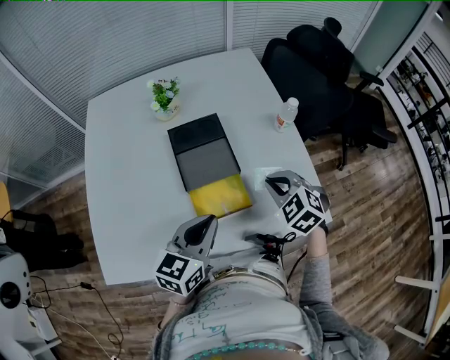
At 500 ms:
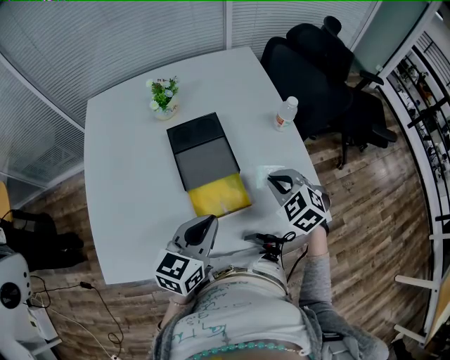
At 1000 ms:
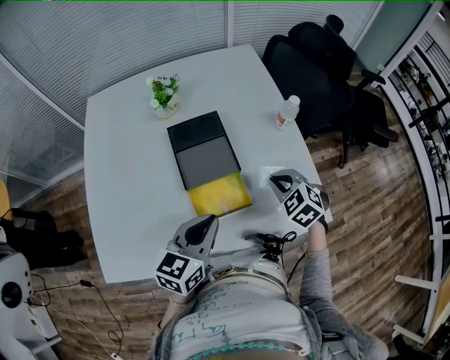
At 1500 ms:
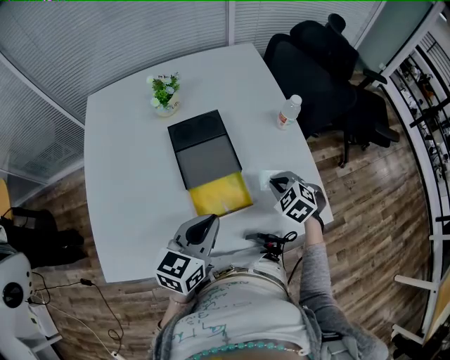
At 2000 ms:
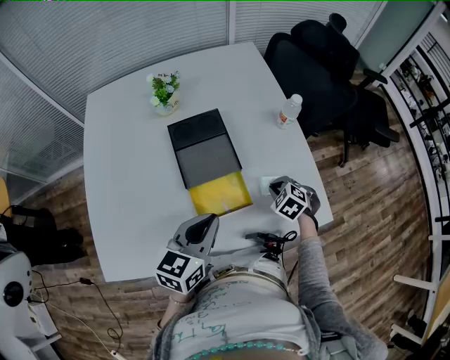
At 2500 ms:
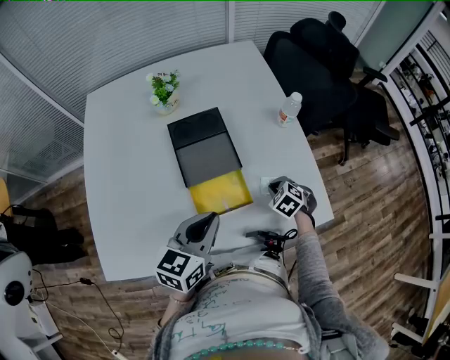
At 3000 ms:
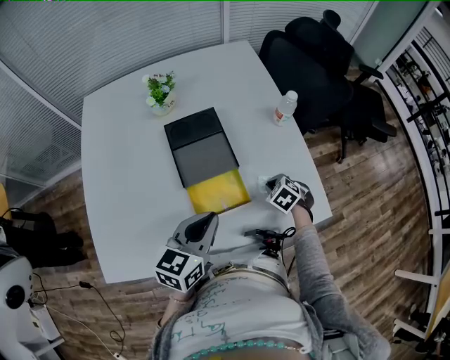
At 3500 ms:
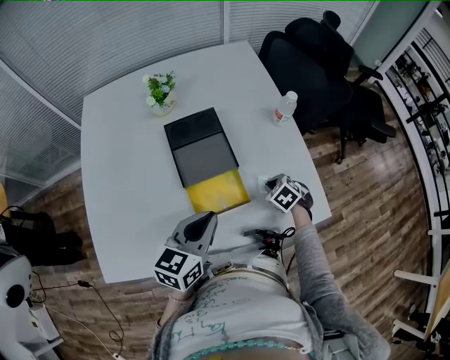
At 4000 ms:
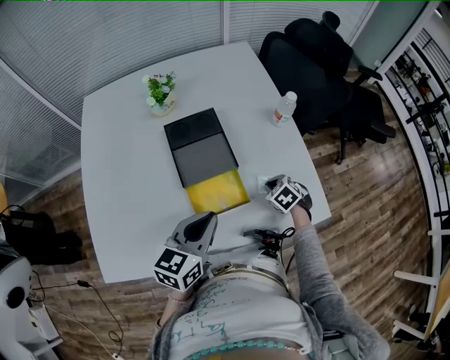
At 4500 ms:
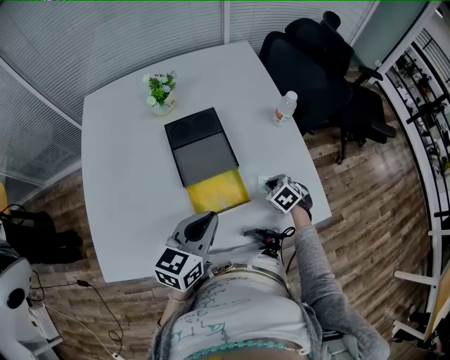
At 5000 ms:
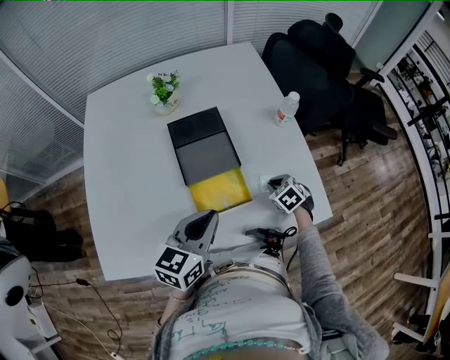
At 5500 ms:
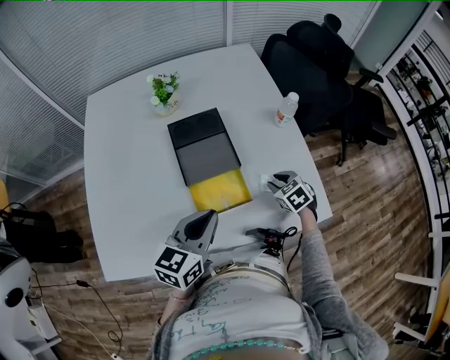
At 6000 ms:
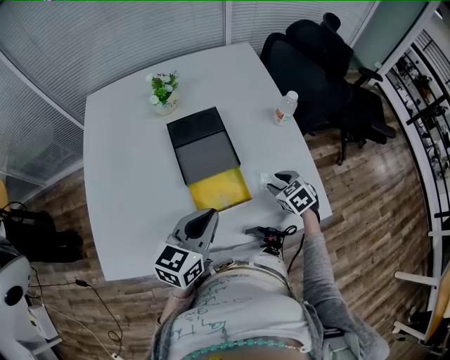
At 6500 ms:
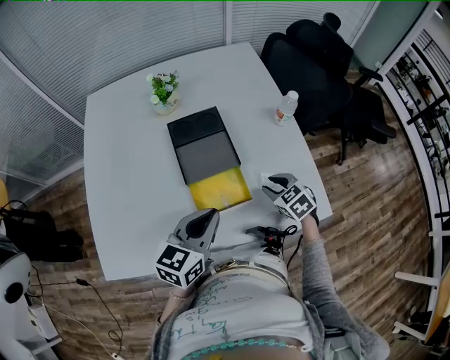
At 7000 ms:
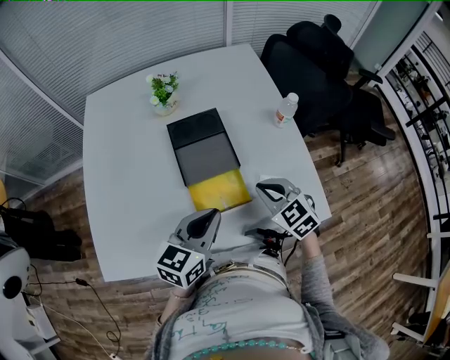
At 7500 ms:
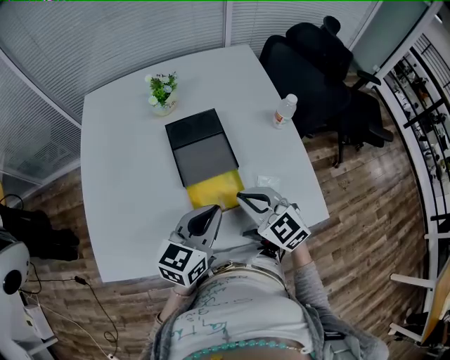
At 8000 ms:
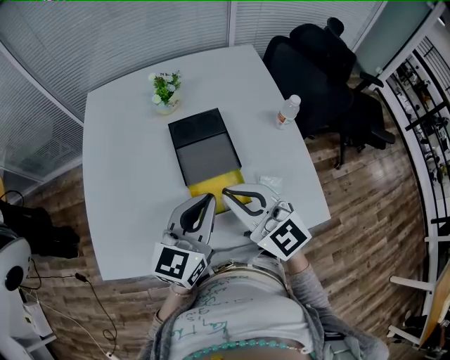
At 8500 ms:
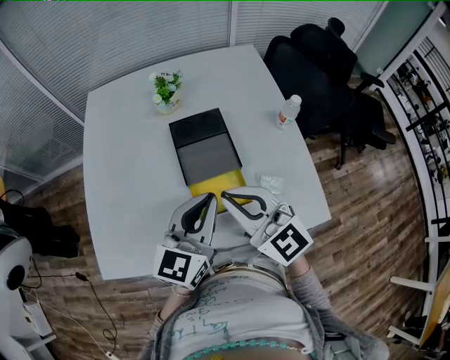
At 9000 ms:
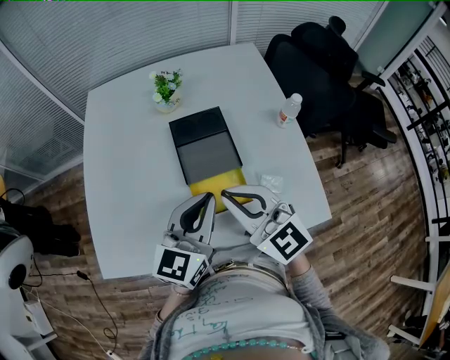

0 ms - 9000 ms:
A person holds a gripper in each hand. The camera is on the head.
0 ms - 2000 ms: The right gripper heads downward, covering roughly 15 cm.
2000 ms - 4500 ms: The grippers stay close to where they were, moving slightly.
4500 ms - 7000 ms: The right gripper travels upward and to the left by some 20 cm, swivels some 30 degrees, and opens, then closes once more.
7000 ms - 9000 ms: The left gripper shifts roughly 5 cm upward, while the right gripper goes some 20 cm upward and to the left, and turns by roughly 30 degrees.

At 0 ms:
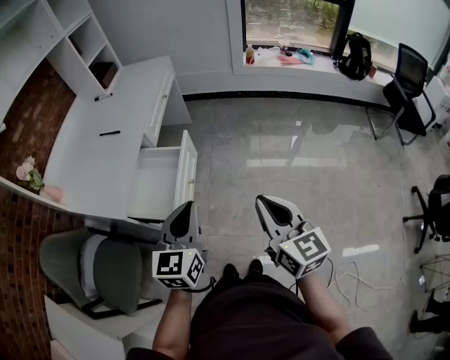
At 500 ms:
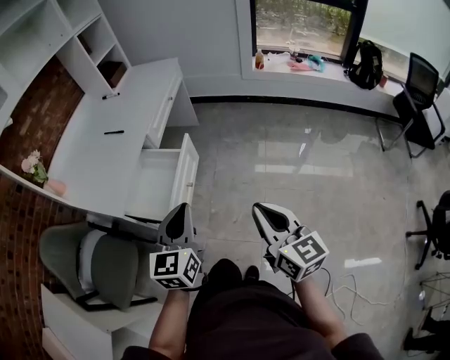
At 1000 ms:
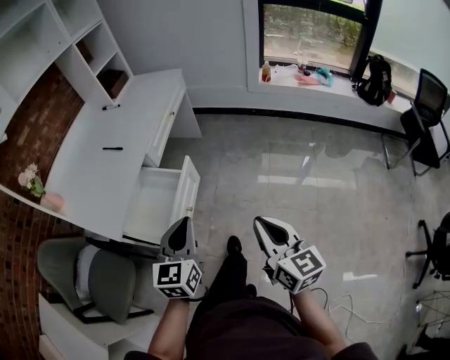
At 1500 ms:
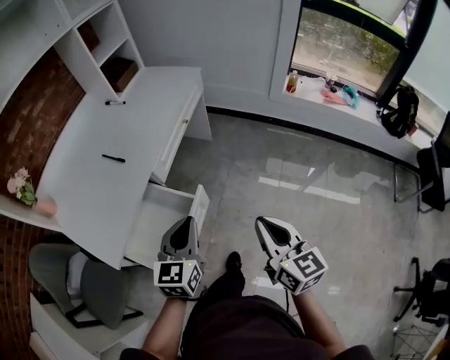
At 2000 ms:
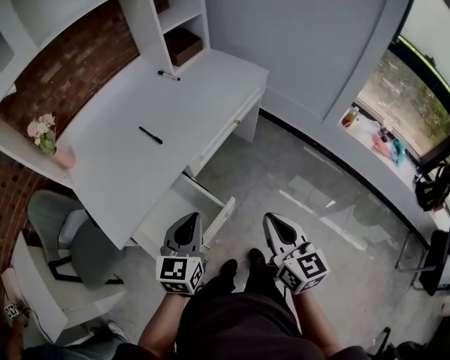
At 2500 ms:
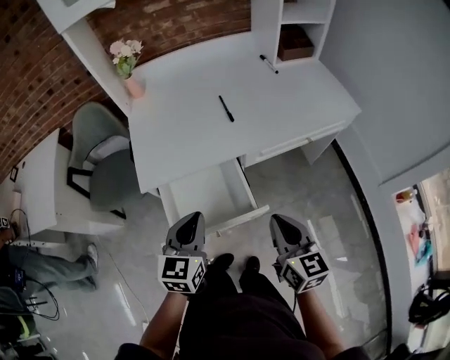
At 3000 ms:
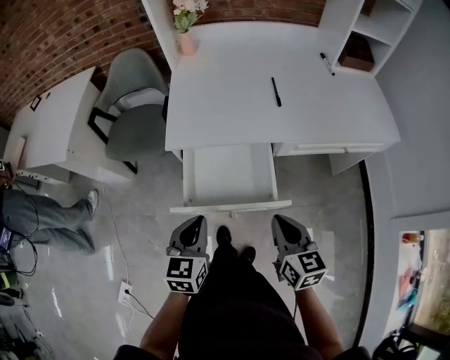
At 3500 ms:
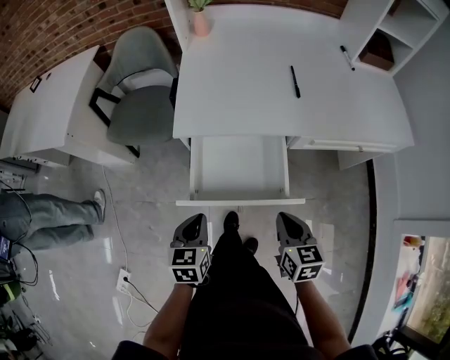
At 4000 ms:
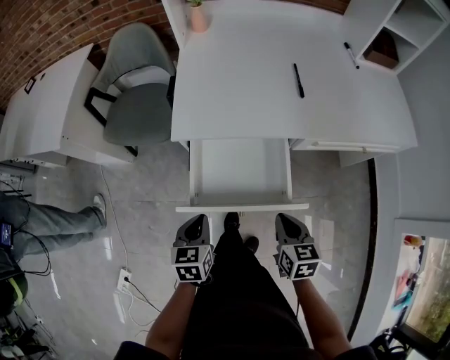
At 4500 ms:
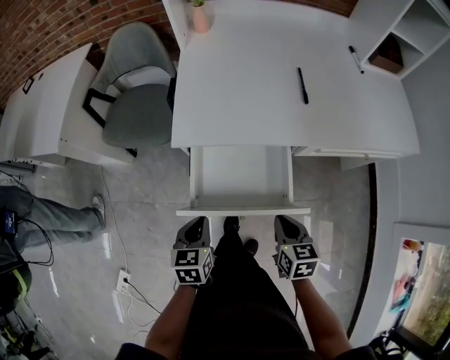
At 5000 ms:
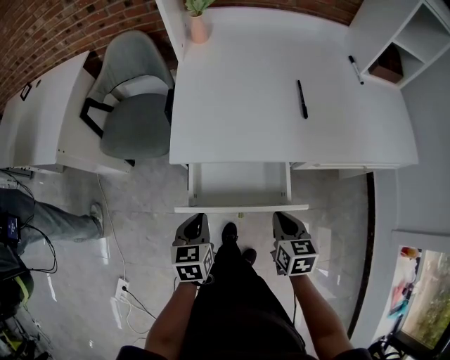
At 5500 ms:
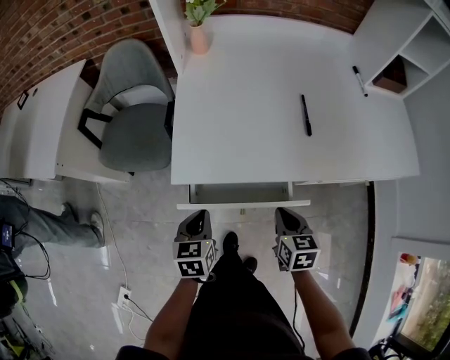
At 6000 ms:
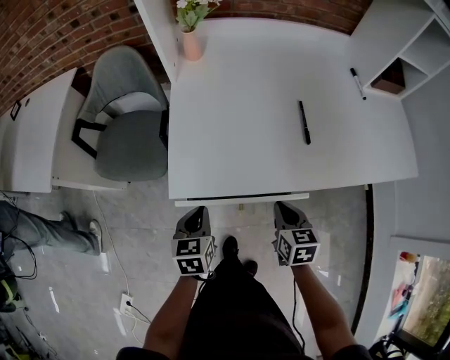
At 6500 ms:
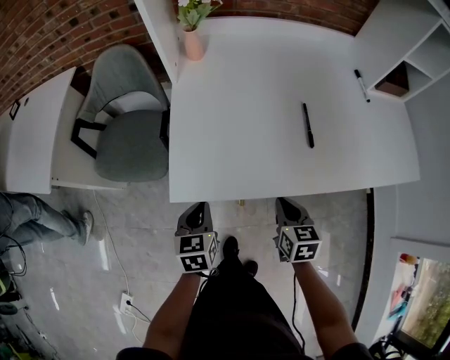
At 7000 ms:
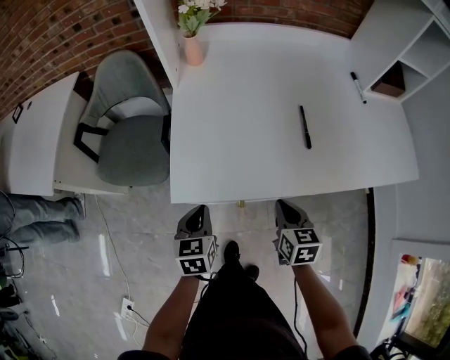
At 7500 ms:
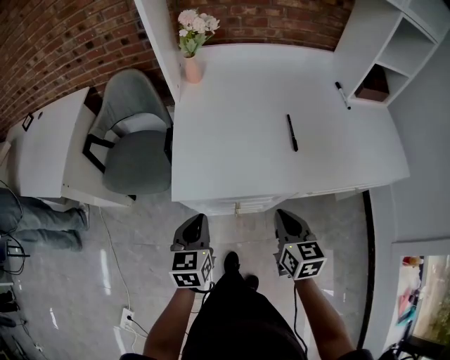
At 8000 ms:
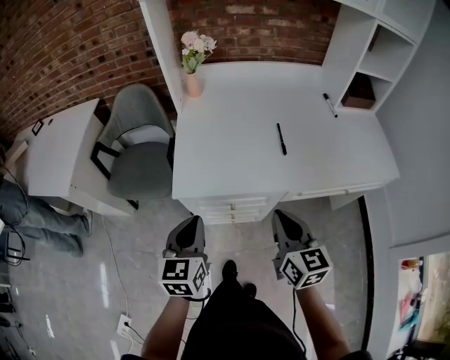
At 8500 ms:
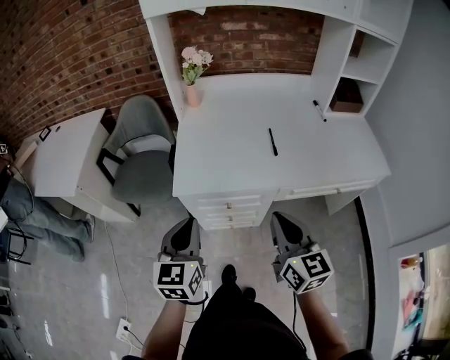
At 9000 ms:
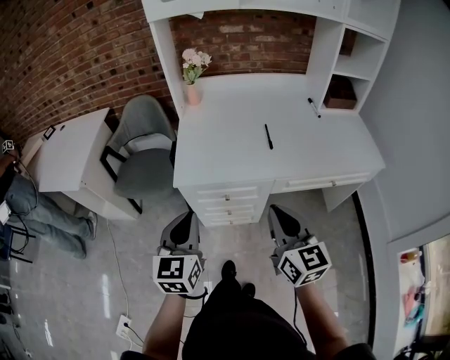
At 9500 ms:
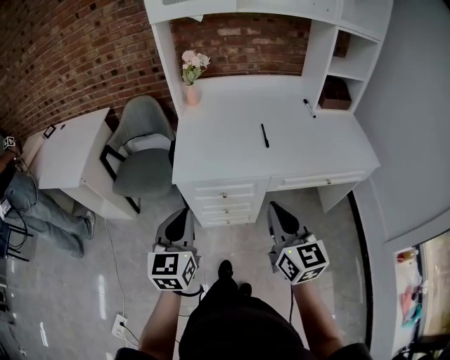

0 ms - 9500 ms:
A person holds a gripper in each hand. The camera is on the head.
0 ms - 2000 ms: The right gripper shifts by approximately 35 cm, and turns by some 30 degrees. Meanwhile the left gripper shifts by some 30 cm, and changes its angle by about 30 degrees.
2000 ms - 4000 ms: The right gripper is displaced downward by roughly 20 cm, and changes its angle by some 50 degrees. Meanwhile the left gripper changes place by about 25 cm, and swivels roughly 60 degrees.
4000 ms - 5500 ms: Both grippers move forward, about 15 cm.
5500 ms - 7500 ms: The grippers both shift upward by some 10 cm.
7500 ms - 9500 ms: The two grippers go some 25 cm upward and backward. The right gripper changes its angle by some 30 degrees; the left gripper swivels approximately 20 degrees.

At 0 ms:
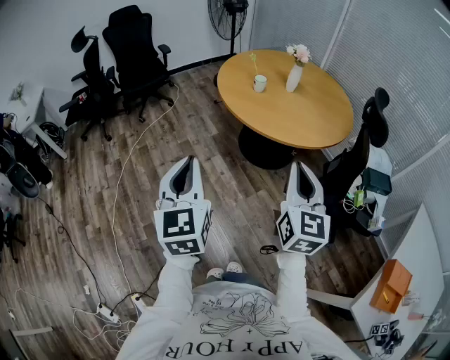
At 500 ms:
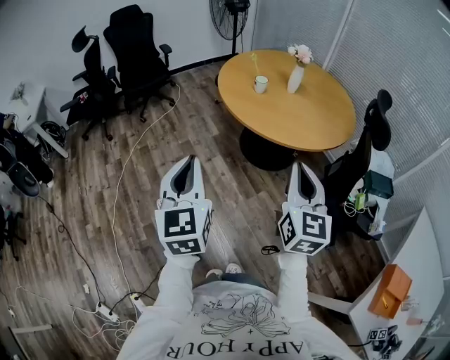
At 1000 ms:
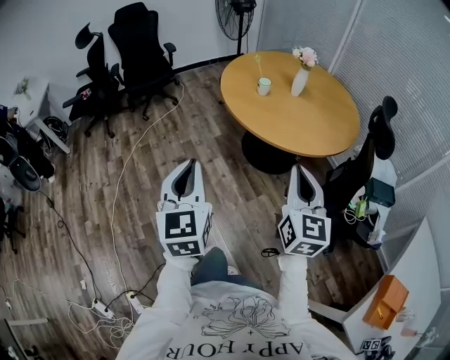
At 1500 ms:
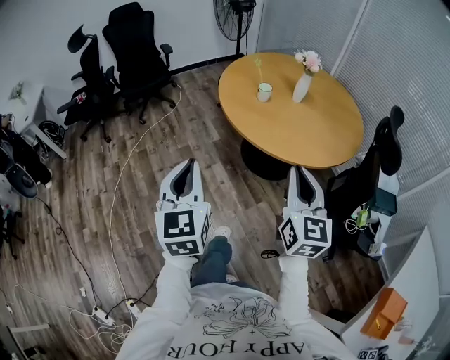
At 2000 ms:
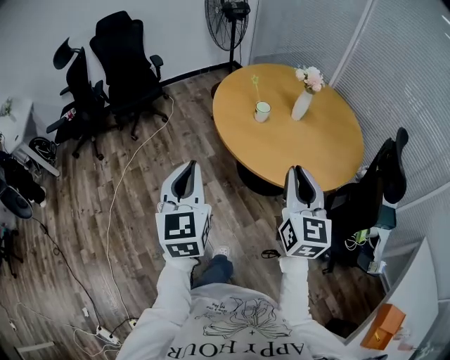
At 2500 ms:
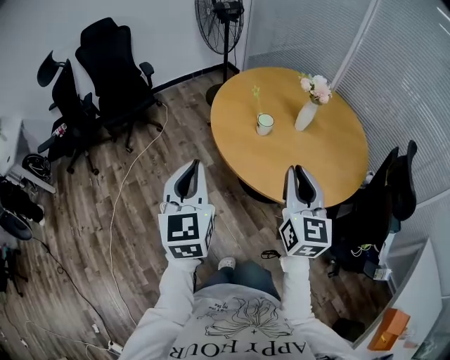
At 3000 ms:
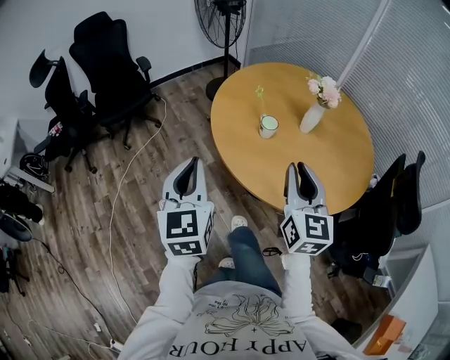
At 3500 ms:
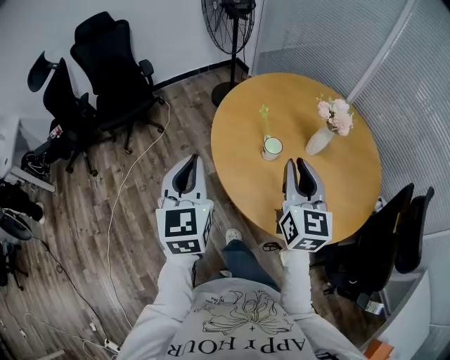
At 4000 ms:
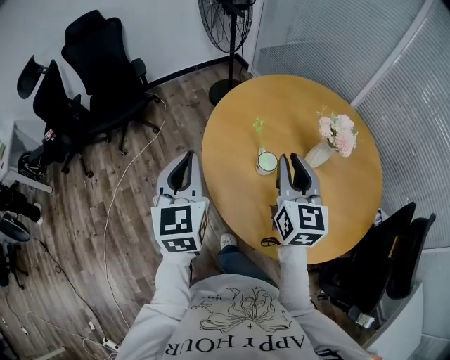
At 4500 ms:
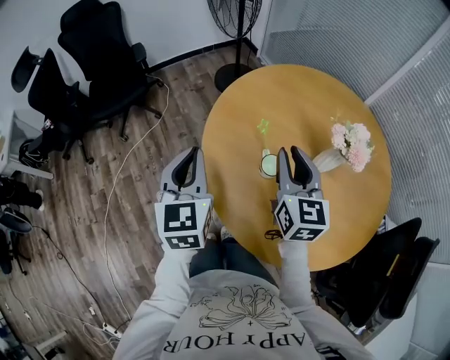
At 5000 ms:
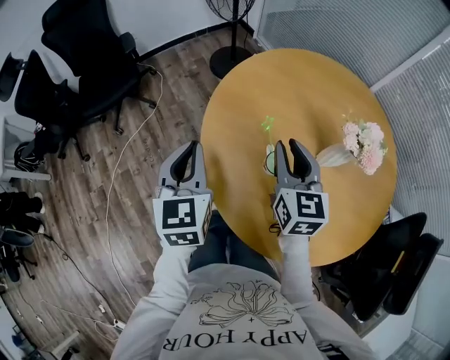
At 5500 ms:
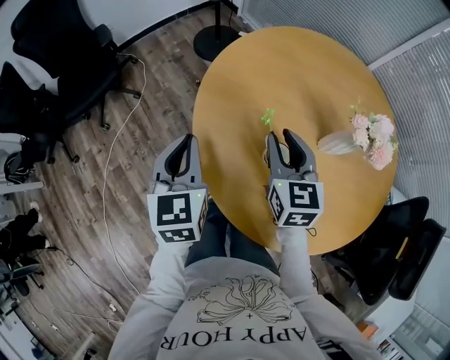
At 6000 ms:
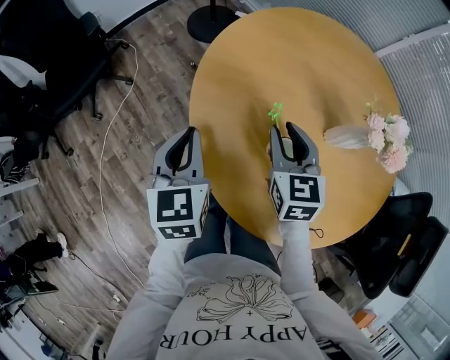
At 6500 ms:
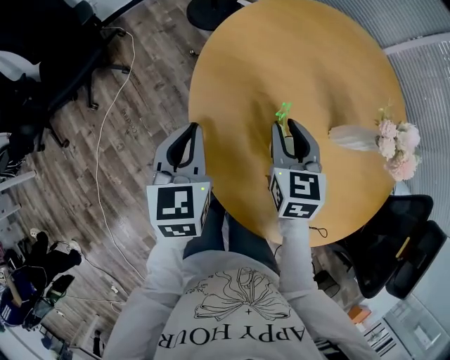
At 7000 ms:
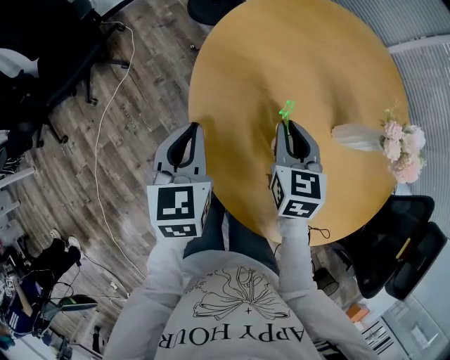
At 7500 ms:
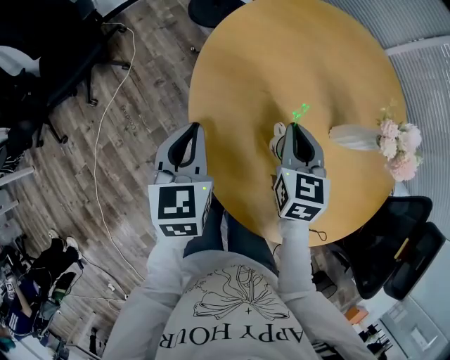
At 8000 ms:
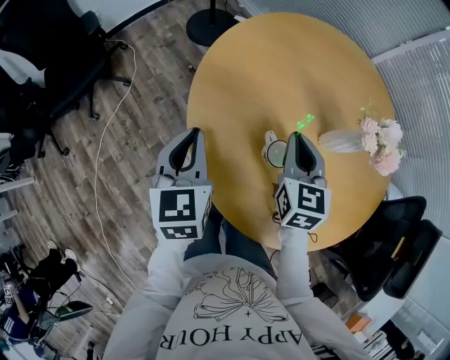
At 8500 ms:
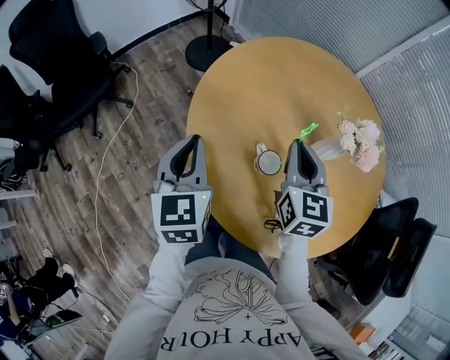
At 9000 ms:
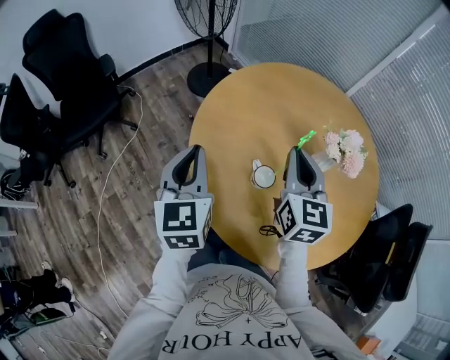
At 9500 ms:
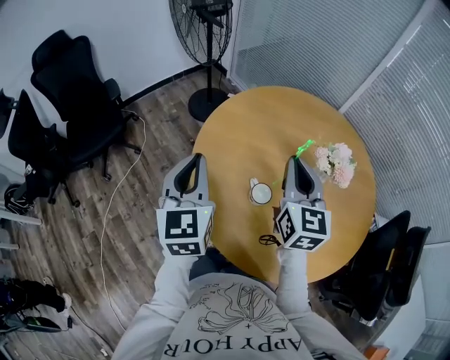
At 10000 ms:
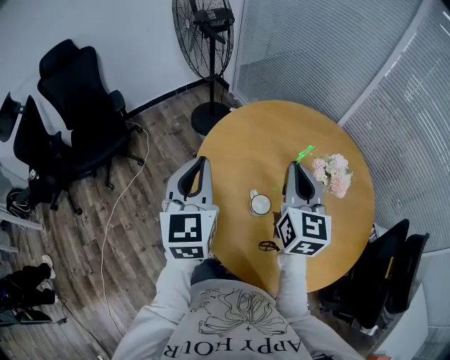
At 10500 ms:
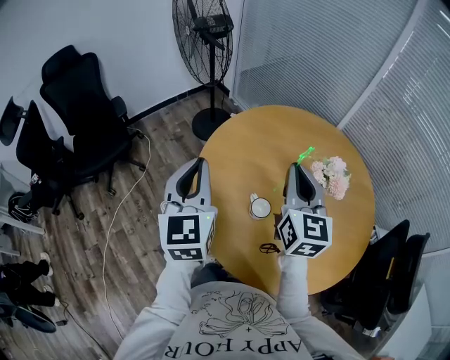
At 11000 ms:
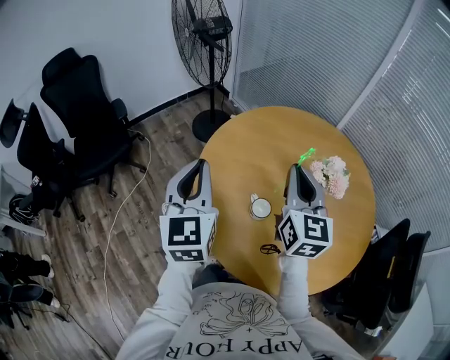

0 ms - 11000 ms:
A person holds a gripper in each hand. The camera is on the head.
0 ms - 2000 ms: Both grippers move forward, some 25 cm.
2000 ms - 3500 ms: The grippers both shift forward by about 35 cm.
3500 ms - 5500 ms: The grippers both shift forward and downward by about 30 cm. The right gripper changes its angle by approximately 20 degrees.
5500 ms - 7500 ms: The grippers both shift downward by approximately 10 cm. The right gripper closes up.
7500 ms - 9000 ms: Both grippers travel together upward, about 15 cm. The right gripper changes its angle by approximately 20 degrees.
9000 ms - 11000 ms: The grippers both shift upward by some 10 cm.
